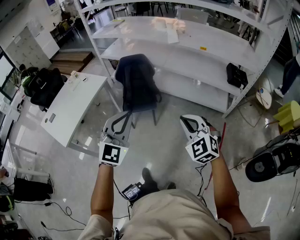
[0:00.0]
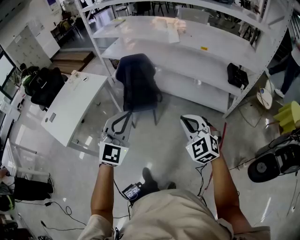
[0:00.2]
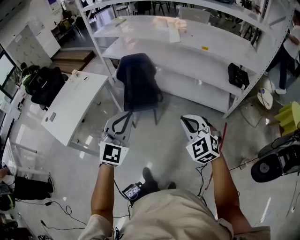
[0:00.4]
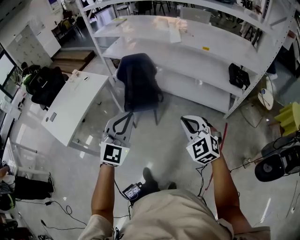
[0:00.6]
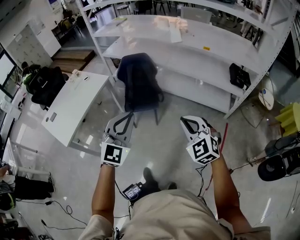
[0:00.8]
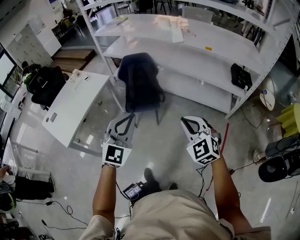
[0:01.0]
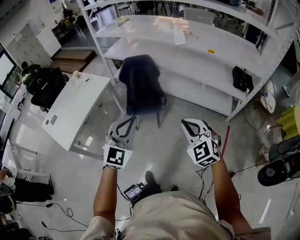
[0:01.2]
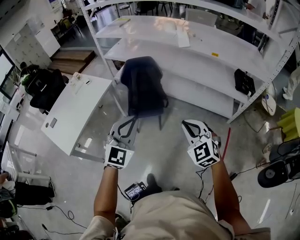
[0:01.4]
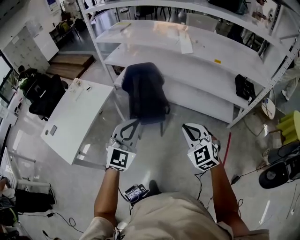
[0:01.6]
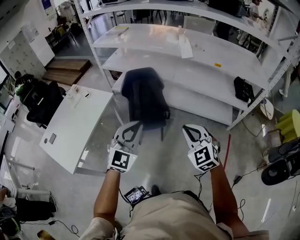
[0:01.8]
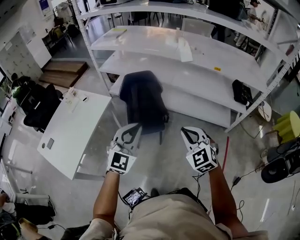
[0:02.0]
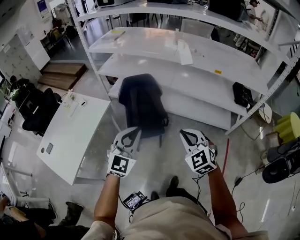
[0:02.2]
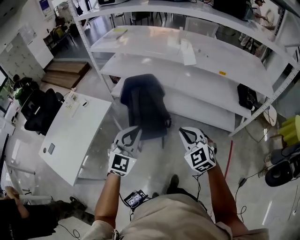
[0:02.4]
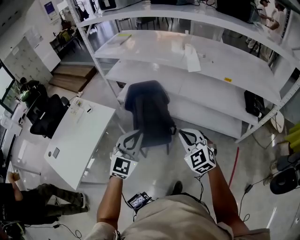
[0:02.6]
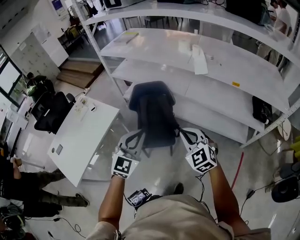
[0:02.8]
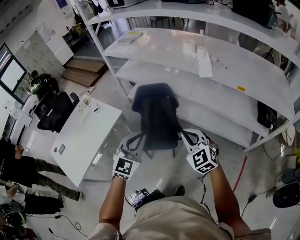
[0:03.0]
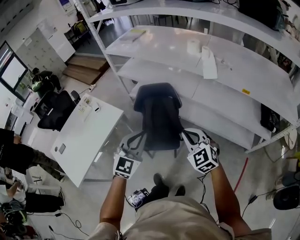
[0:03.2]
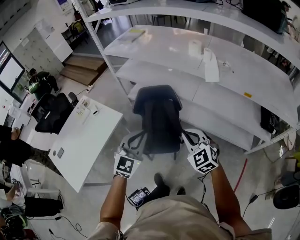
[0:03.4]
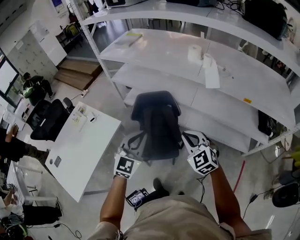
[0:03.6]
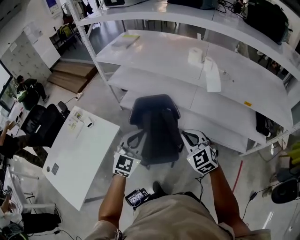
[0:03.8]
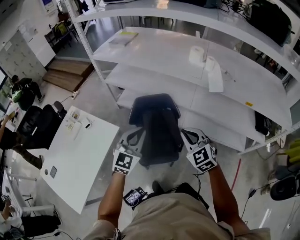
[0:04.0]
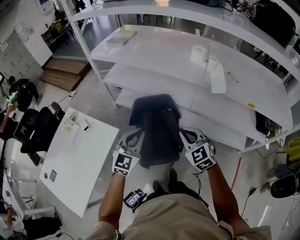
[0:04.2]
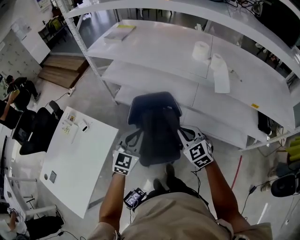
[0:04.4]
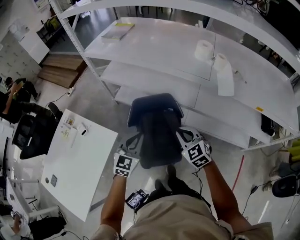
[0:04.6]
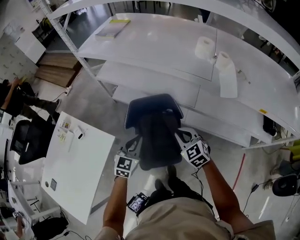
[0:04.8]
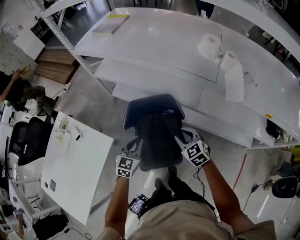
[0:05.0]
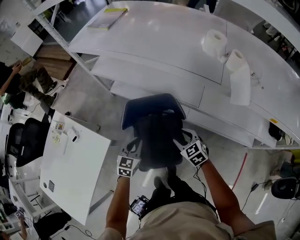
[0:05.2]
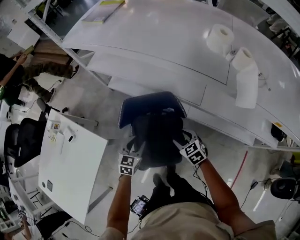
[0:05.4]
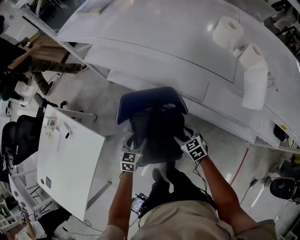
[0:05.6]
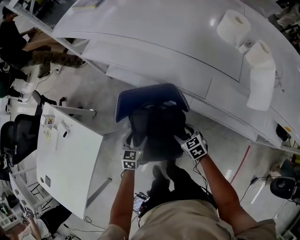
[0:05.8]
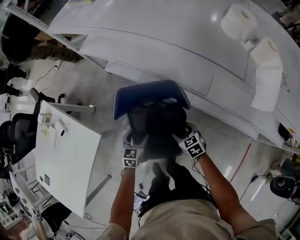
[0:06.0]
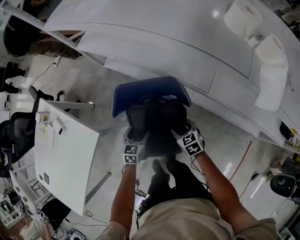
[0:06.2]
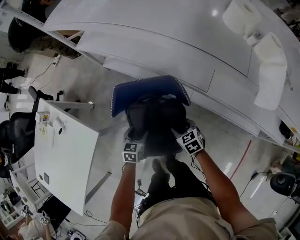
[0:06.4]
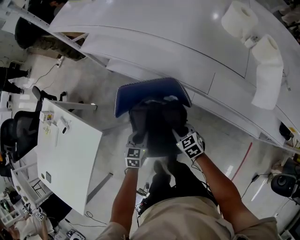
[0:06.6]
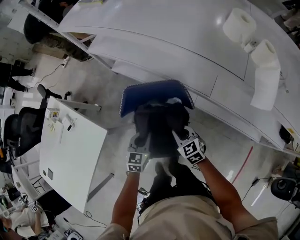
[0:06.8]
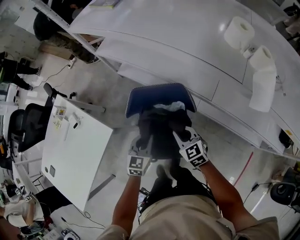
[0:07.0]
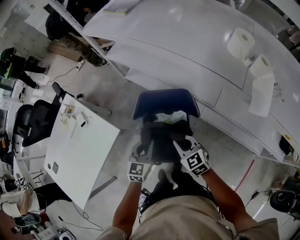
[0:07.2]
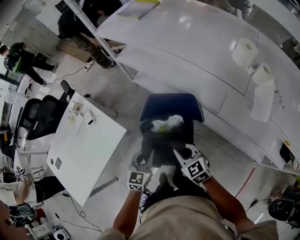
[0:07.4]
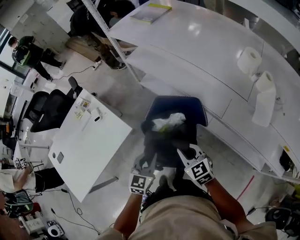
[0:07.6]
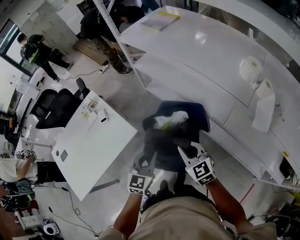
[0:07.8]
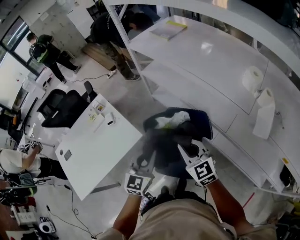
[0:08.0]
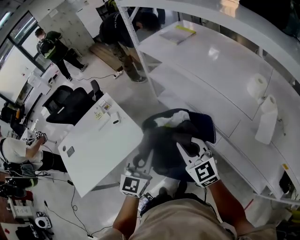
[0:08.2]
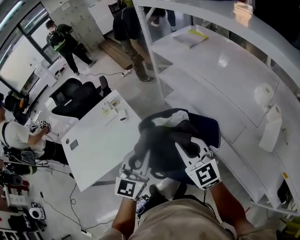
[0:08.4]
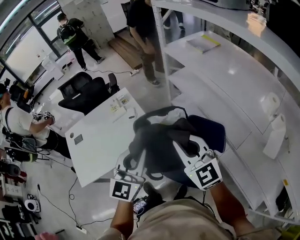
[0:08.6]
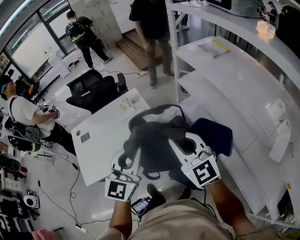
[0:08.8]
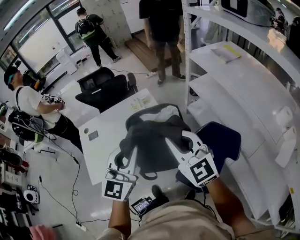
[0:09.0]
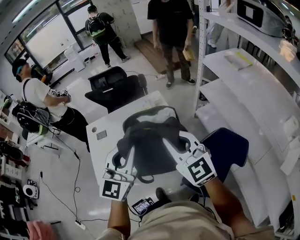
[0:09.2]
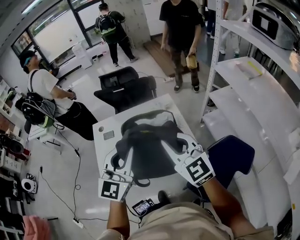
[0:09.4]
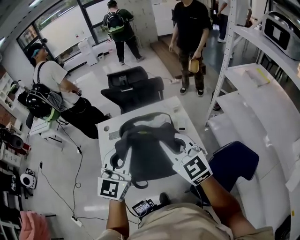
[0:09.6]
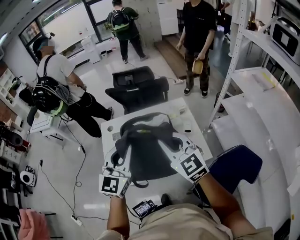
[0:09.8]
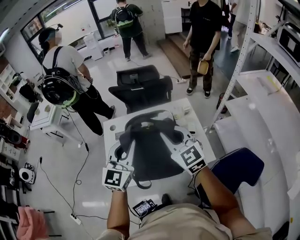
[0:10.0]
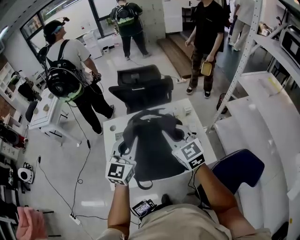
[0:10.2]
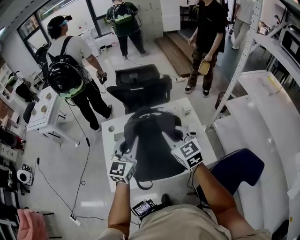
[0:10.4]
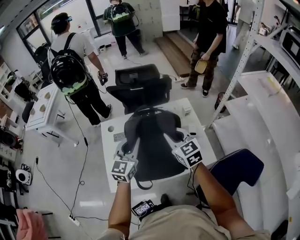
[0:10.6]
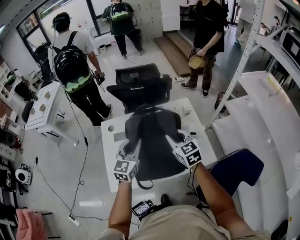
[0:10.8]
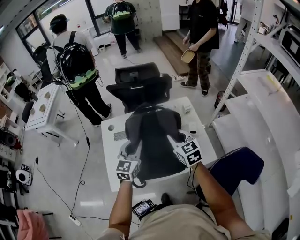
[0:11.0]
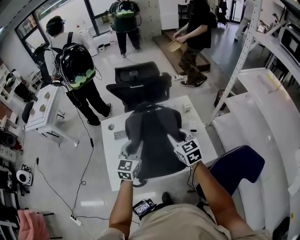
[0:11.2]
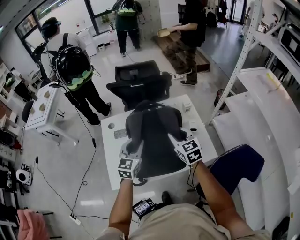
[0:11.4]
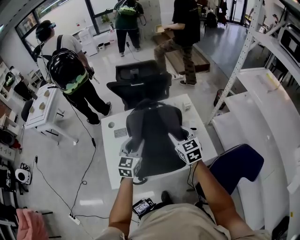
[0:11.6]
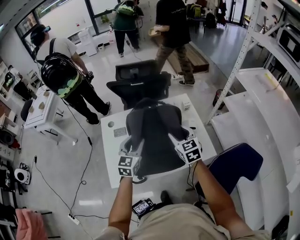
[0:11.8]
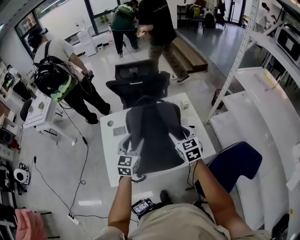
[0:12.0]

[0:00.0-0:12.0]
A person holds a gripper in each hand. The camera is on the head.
0:00.0 to 0:01.6: The grippers both shift forward and to the left by about 15 cm.
0:01.6 to 0:03.0: Both grippers move forward, about 25 cm.
0:03.0 to 0:04.4: Both grippers move forward and to the left, some 30 cm.
0:04.4 to 0:06.0: Both grippers travel together downward, roughly 40 cm. The right gripper turns by about 40 degrees, and opens its fingers. The left gripper swivels some 40 degrees, and opens its fingers.
0:06.0 to 0:07.6: The right gripper is displaced upward and to the left by approximately 30 cm, swivels approximately 30 degrees, and closes up. Meanwhile the left gripper shifts roughly 30 cm upward and backward, and closes up.
0:07.6 to 0:09.0: The right gripper moves some 40 cm, and turns by about 40 degrees. The left gripper ends up some 40 cm from where it was, and swivels some 40 degrees.
0:09.0 to 0:10.4: The right gripper shifts some 40 cm forward, to the left and downward. Meanwhile the left gripper shifts about 35 cm to the left and forward.
0:10.4 to 0:12.0: The grippers both shift downward by roughly 10 cm. The right gripper opens. Meanwhile the left gripper opens.

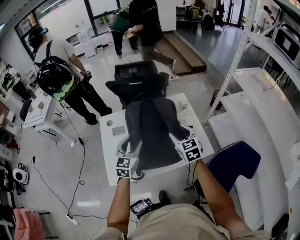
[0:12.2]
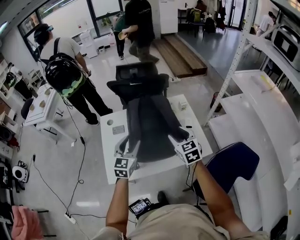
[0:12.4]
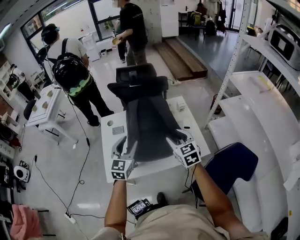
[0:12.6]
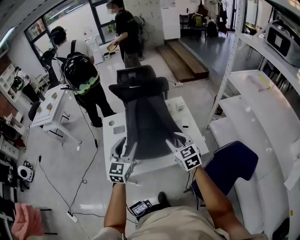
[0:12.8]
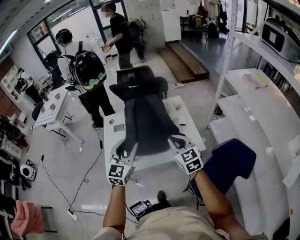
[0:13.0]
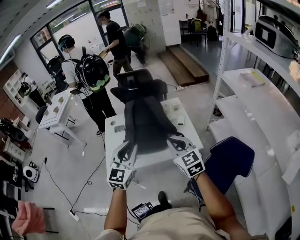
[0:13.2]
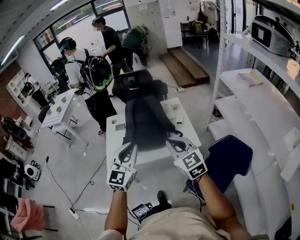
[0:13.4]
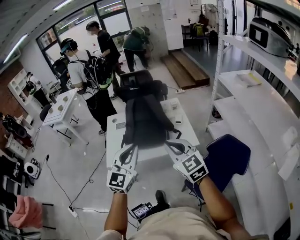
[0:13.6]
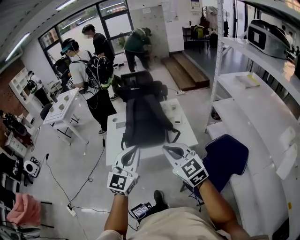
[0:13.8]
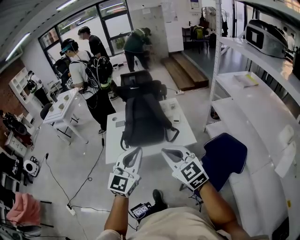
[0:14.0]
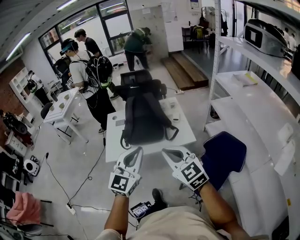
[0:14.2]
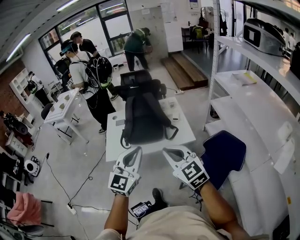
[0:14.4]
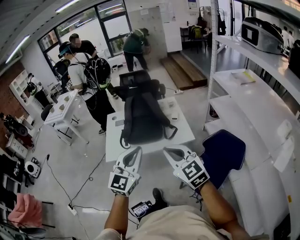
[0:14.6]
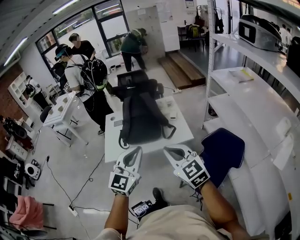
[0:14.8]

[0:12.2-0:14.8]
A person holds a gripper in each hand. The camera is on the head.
0:12.2 to 0:13.4: The left gripper heads backward, upward and to the right, covering about 35 cm, and closes its fingers. The right gripper travels backward and upward by some 30 cm, rotates roughly 20 degrees, and closes its fingers.
0:13.4 to 0:14.8: Both grippers travel together backward, roughly 15 cm.

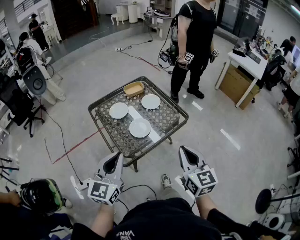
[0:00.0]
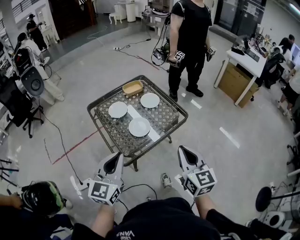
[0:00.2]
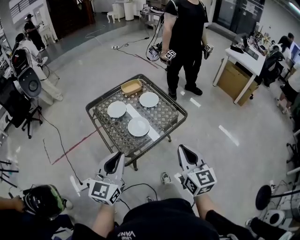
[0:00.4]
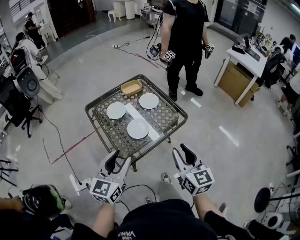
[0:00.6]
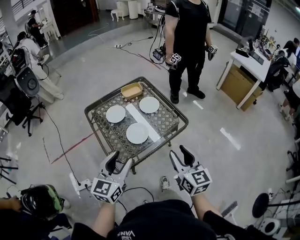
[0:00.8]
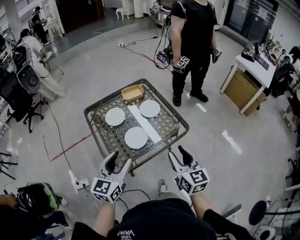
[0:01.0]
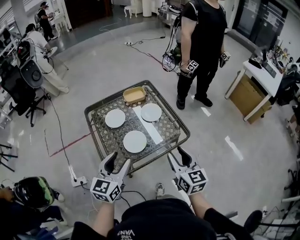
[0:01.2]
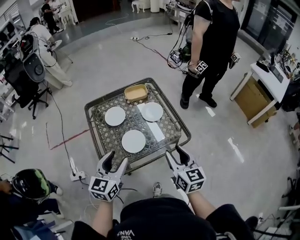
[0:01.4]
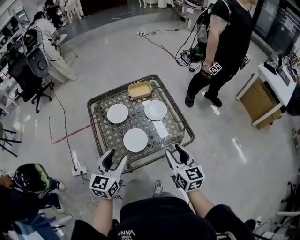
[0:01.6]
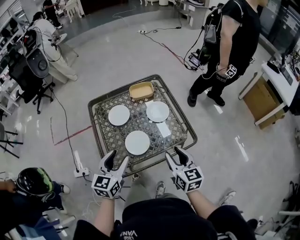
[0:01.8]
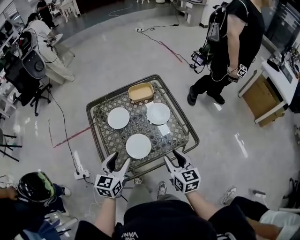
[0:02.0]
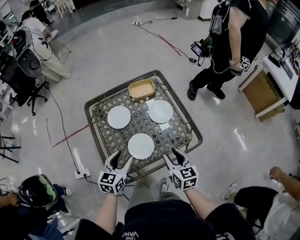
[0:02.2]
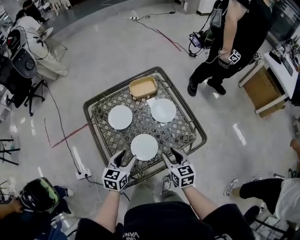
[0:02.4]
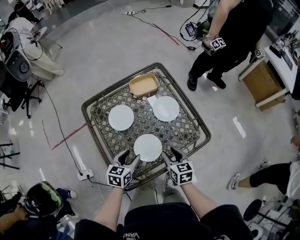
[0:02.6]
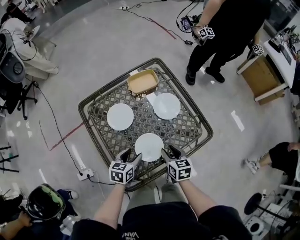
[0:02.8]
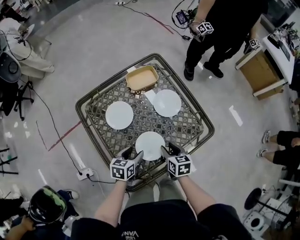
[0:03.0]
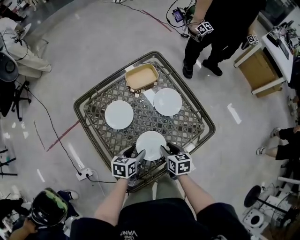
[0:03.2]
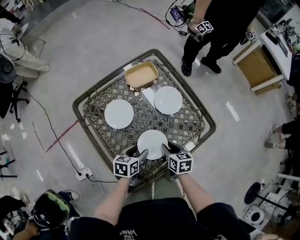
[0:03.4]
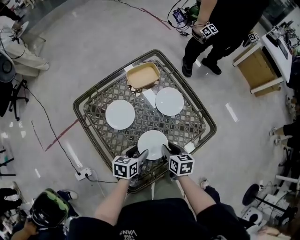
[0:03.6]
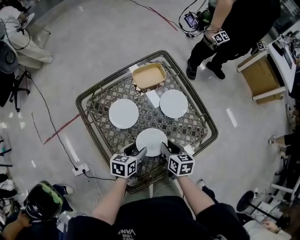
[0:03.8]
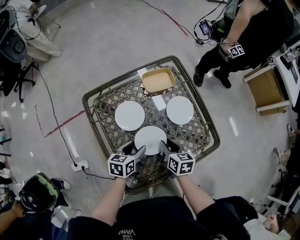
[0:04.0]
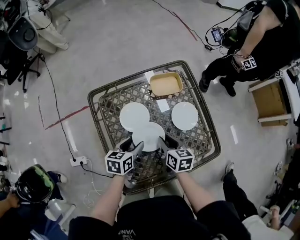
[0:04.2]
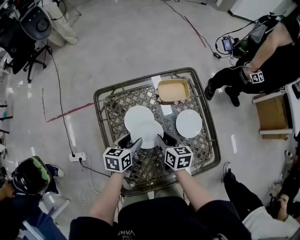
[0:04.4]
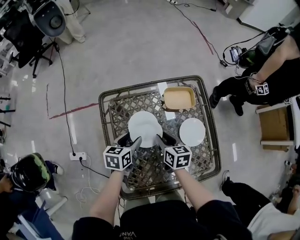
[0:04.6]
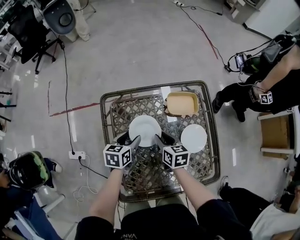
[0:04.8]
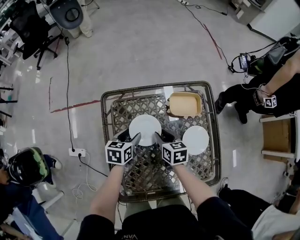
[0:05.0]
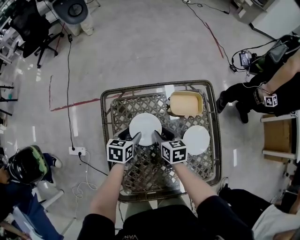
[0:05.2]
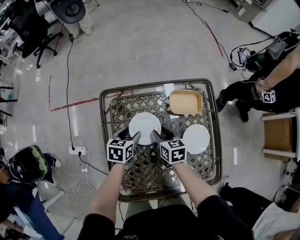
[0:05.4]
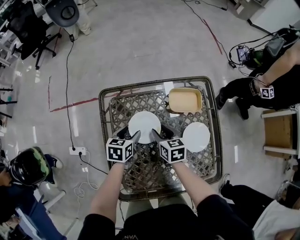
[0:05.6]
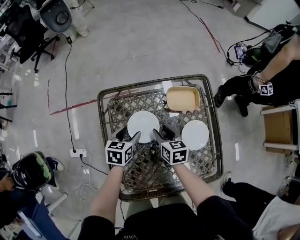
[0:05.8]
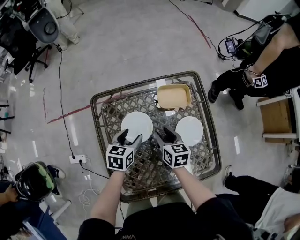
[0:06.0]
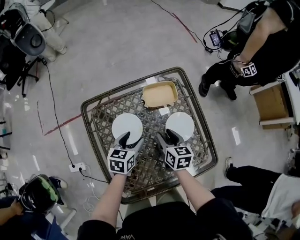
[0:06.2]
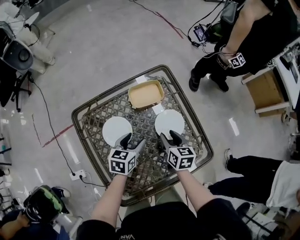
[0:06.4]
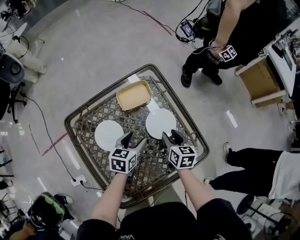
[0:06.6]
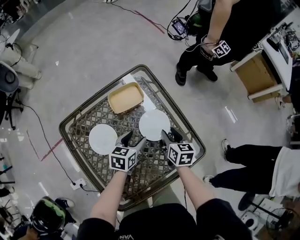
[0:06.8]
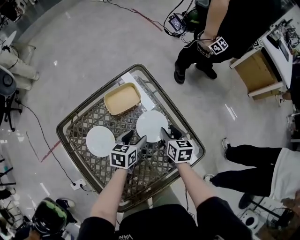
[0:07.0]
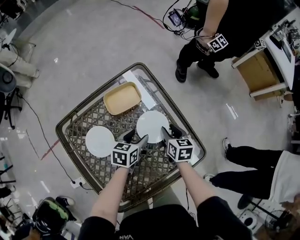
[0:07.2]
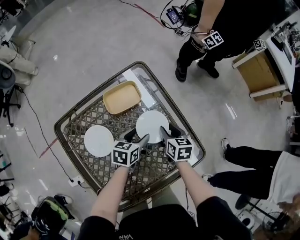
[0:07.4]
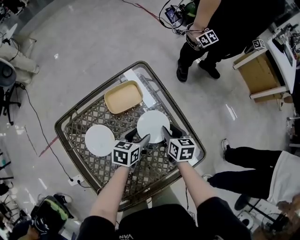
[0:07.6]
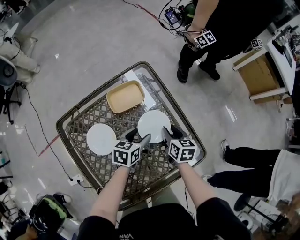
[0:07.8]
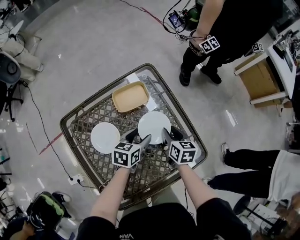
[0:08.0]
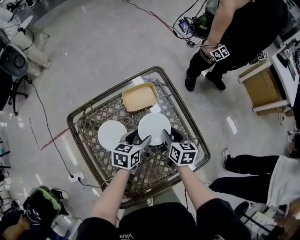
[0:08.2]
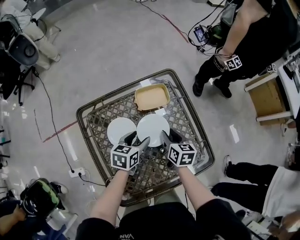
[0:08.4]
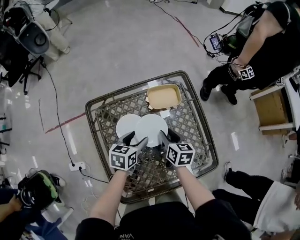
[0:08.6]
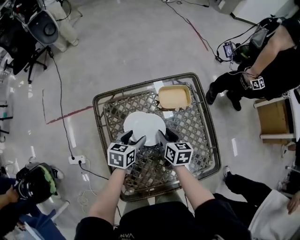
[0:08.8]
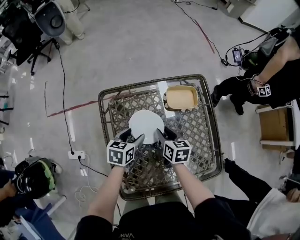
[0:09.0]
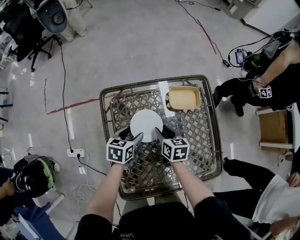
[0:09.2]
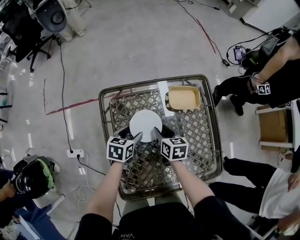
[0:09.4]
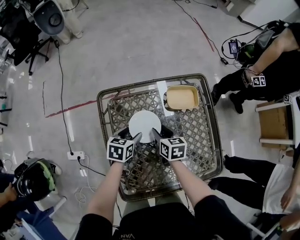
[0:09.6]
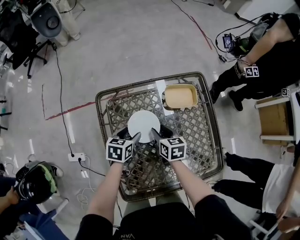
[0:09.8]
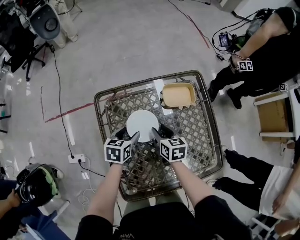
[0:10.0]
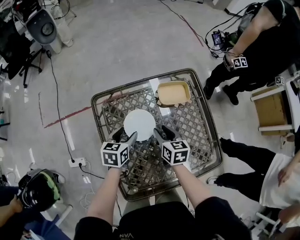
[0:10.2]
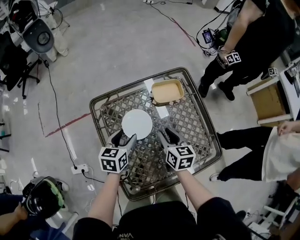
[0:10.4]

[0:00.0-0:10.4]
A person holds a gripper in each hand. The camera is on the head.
0:00.0 to 0:01.4: The left gripper moves forward and downward, about 15 cm, and opens up. The right gripper moves forward, approximately 20 cm, and opens up.
0:01.4 to 0:03.0: The left gripper travels downward and forward by some 30 cm, and rotates about 40 degrees. Meanwhile the right gripper travels downward, forward and to the left by about 30 cm, and changes its angle by roughly 30 degrees.
0:03.0 to 0:04.4: The two grippers go roughly 15 cm to the left and forward. The left gripper swivels approximately 20 degrees.
0:04.4 to 0:06.0: Both grippers travel together forward, approximately 5 cm.
0:06.0 to 0:07.4: The left gripper ends up about 25 cm from where it was, and changes its angle by approximately 30 degrees, while the right gripper changes place by some 25 cm, and rotates some 20 degrees.
0:07.4 to 0:09.0: The left gripper ends up roughly 25 cm from where it was, and rotates approximately 20 degrees. The right gripper changes place by some 25 cm, and changes its angle by roughly 20 degrees.
0:09.0 to 0:10.4: The right gripper heads upward, covering approximately 5 cm.
